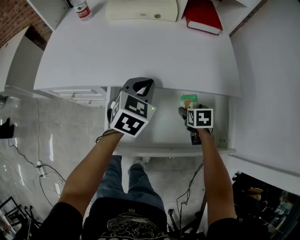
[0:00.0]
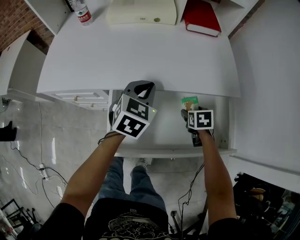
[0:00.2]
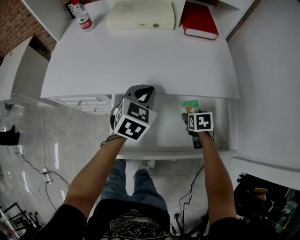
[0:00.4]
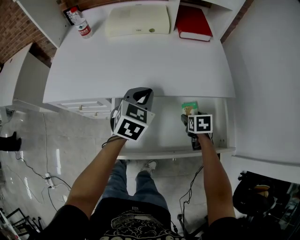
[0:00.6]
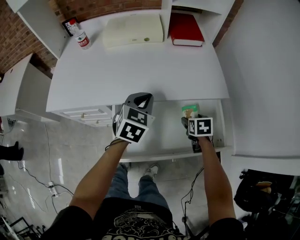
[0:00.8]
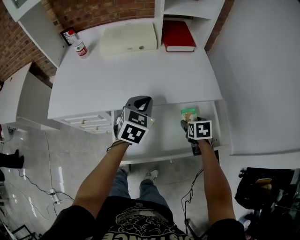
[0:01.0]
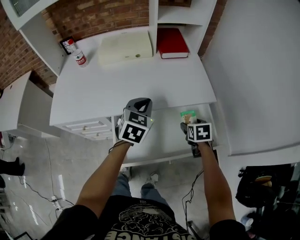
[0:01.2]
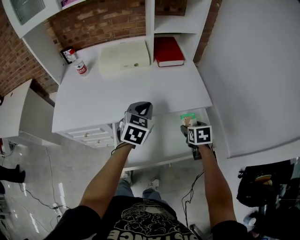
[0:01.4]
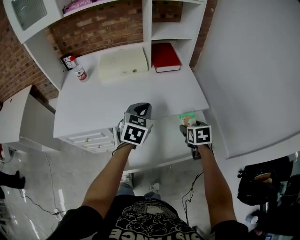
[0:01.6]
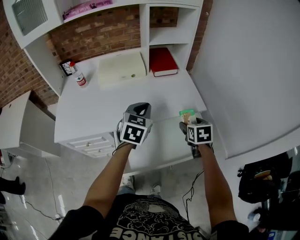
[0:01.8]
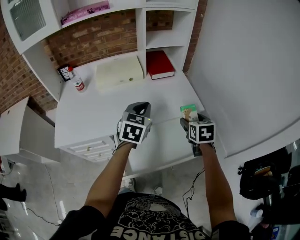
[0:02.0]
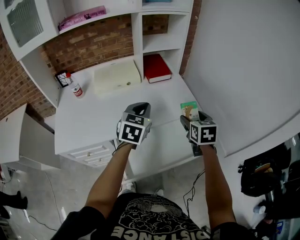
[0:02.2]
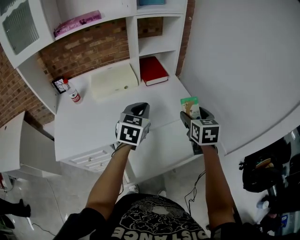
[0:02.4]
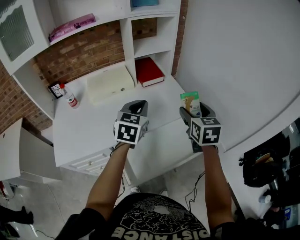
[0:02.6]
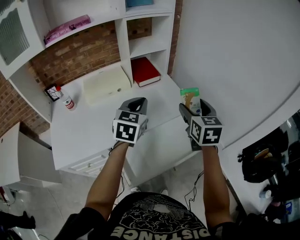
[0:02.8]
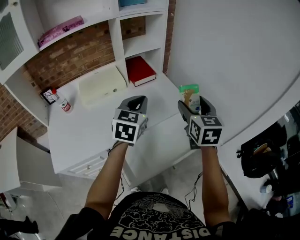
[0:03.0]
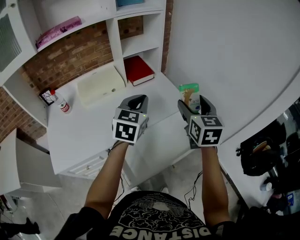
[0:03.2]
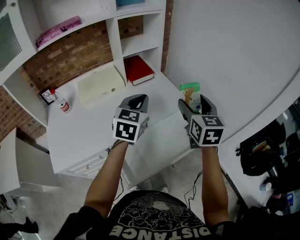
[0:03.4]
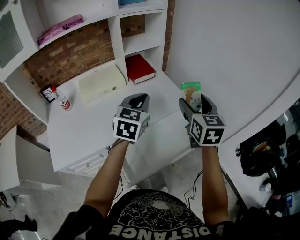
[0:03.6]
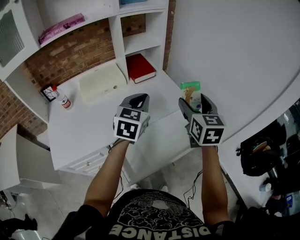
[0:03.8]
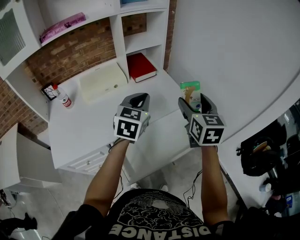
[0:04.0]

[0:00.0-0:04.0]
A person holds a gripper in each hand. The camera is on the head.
0:00.0 to 0:01.4: Both grippers travel together upward, roughly 15 cm.
0:01.4 to 0:02.6: The right gripper heads upward, covering roughly 25 cm, and tips its fingers upward by approximately 30 degrees; the left gripper travels upward by some 10 cm.
0:02.6 to 0:04.0: The right gripper shifts by about 5 cm.

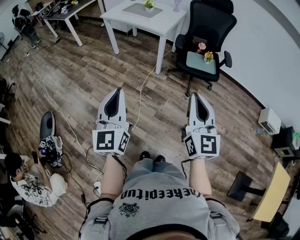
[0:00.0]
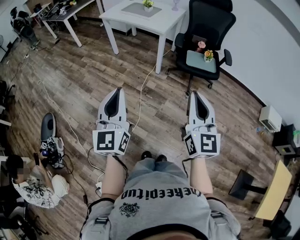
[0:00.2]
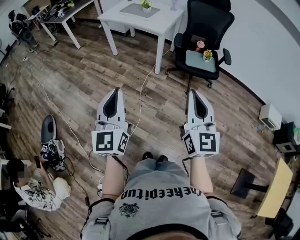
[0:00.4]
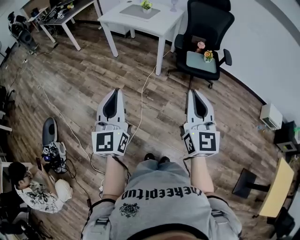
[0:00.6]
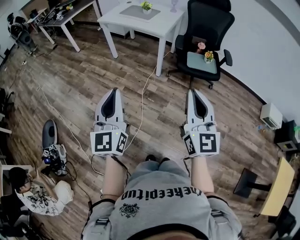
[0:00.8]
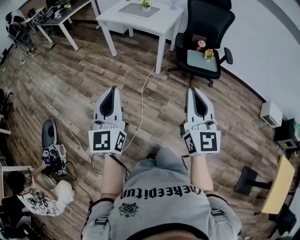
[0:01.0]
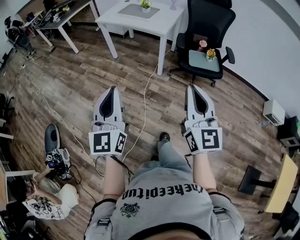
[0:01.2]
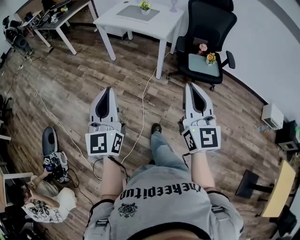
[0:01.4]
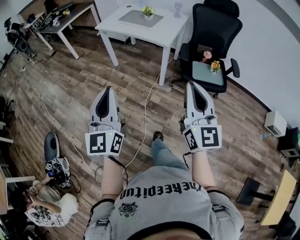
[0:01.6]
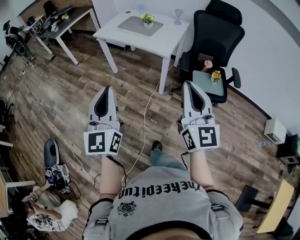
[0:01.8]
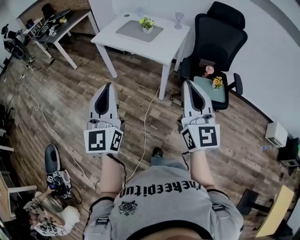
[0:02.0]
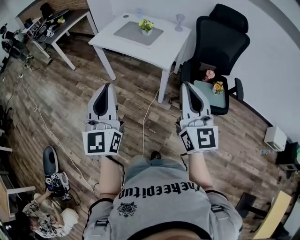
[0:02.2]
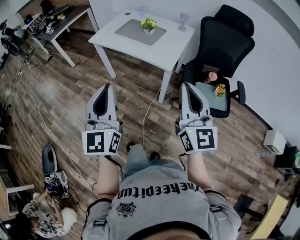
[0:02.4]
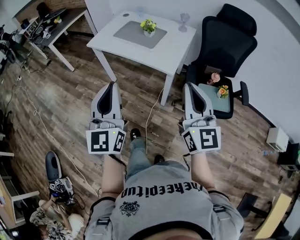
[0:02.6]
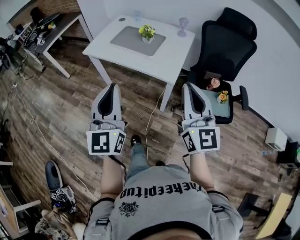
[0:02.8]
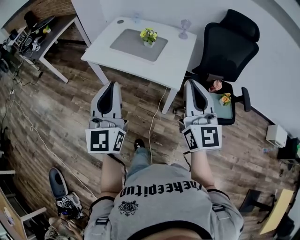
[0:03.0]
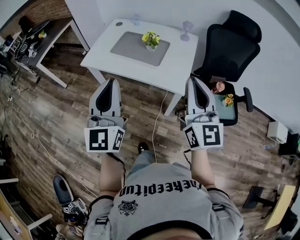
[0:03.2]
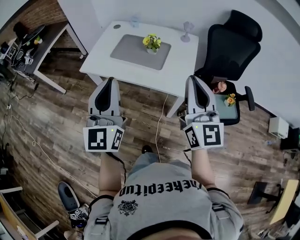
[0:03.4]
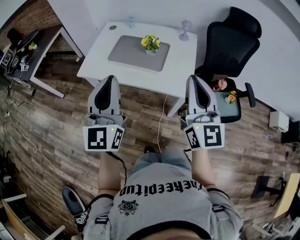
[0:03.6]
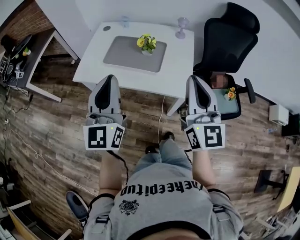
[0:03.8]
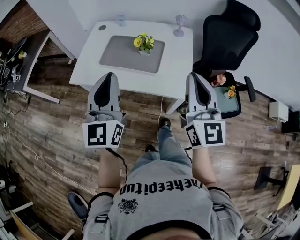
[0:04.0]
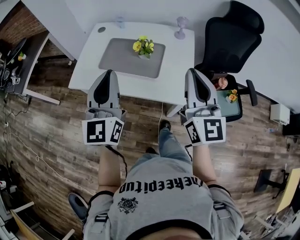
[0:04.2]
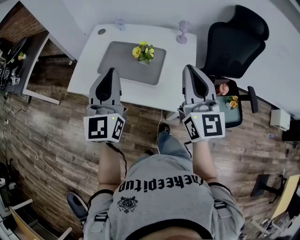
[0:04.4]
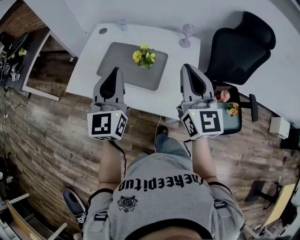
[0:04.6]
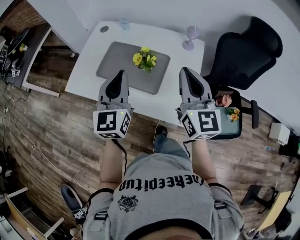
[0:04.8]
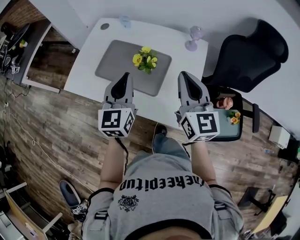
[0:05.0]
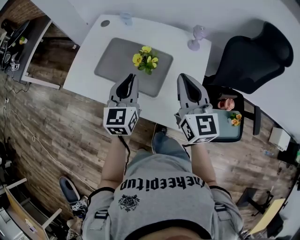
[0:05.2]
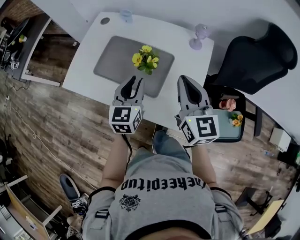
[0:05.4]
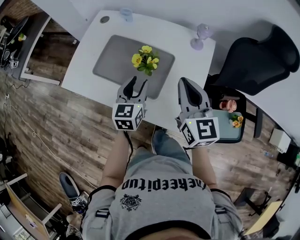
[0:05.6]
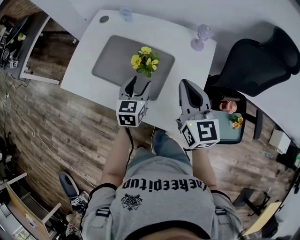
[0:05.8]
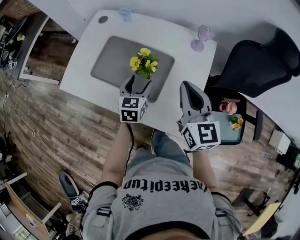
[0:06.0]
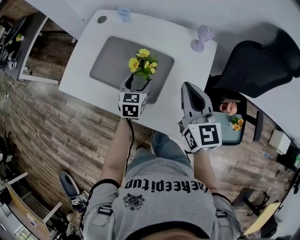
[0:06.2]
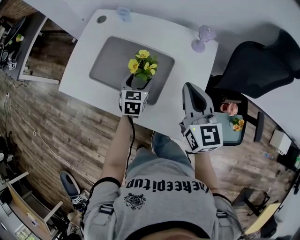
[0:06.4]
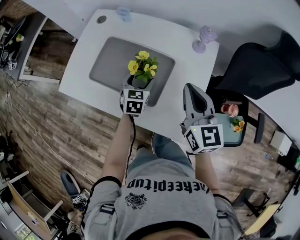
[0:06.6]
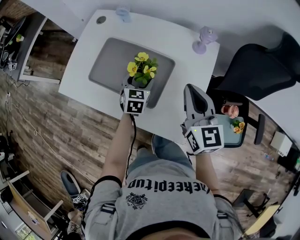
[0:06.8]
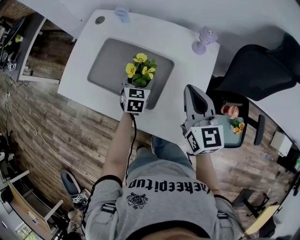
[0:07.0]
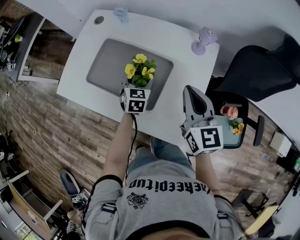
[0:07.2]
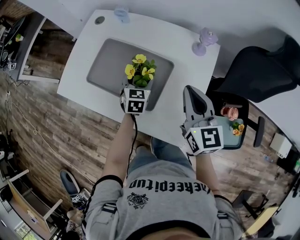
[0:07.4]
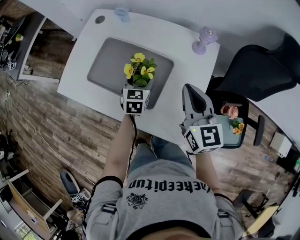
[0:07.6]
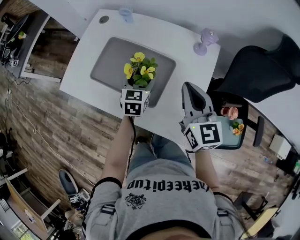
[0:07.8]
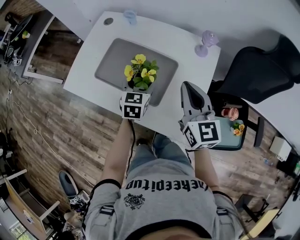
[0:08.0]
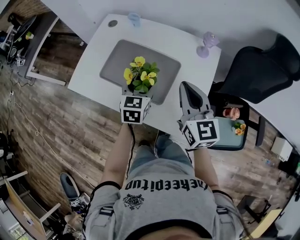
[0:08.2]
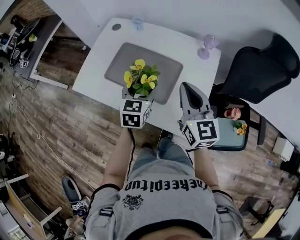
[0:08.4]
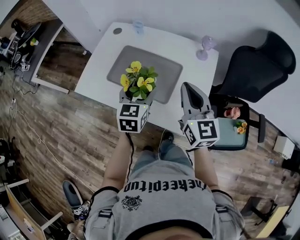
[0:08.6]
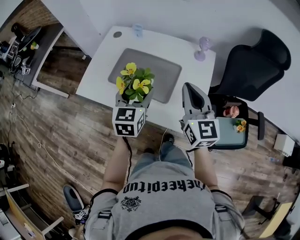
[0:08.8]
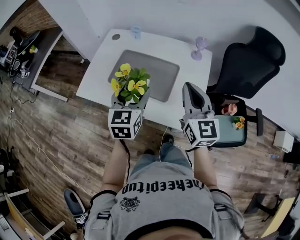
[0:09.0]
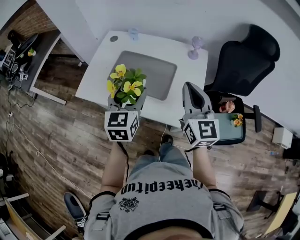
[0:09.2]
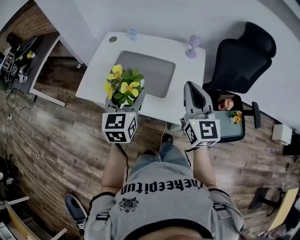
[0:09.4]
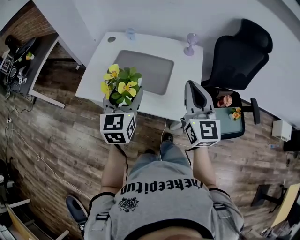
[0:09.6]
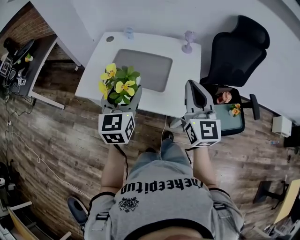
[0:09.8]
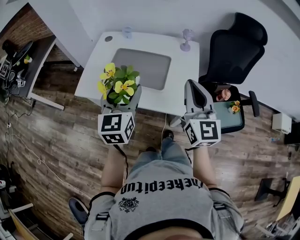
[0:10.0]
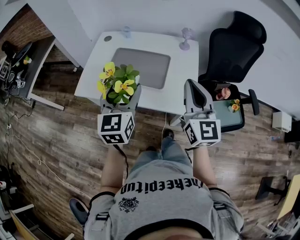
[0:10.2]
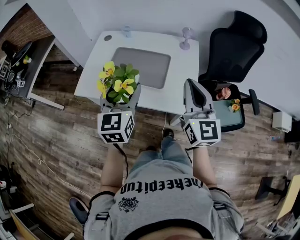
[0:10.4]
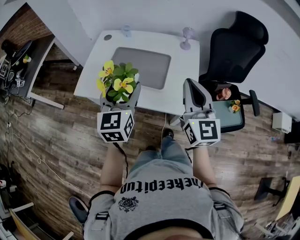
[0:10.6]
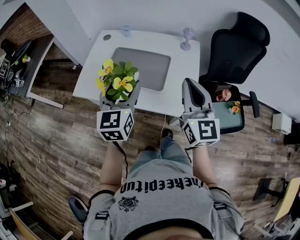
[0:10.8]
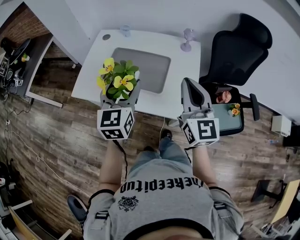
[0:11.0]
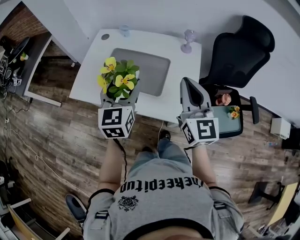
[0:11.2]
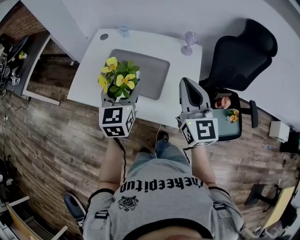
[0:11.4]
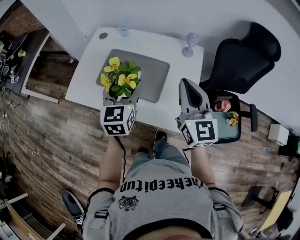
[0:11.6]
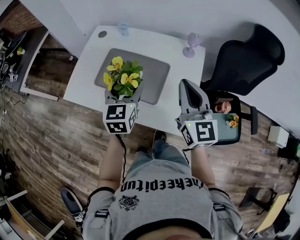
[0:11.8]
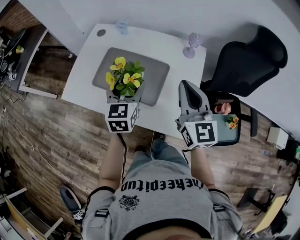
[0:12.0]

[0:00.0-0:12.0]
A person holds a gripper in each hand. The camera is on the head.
0:00.0 to 0:01.6: Both grippers move forward, some 20 cm.
0:01.6 to 0:03.0: Both grippers are carried forward, roughly 40 cm.
0:03.0 to 0:04.4: Both grippers move forward, about 30 cm.
0:04.4 to 0:06.0: The right gripper is displaced forward and downward by roughly 20 cm, and turns by roughly 20 degrees; the left gripper heads downward and forward, covering approximately 35 cm, tips its fingers downward by roughly 40 degrees, and opens up.
0:06.0 to 0:07.6: The left gripper moves forward, approximately 5 cm.
0:07.6 to 0:09.0: The left gripper moves upward, backward and to the left, some 30 cm, while the right gripper moves backward, upward and to the left, some 15 cm.
0:09.0 to 0:10.4: The left gripper is displaced backward and upward by some 10 cm. Meanwhile the right gripper goes roughly 10 cm backward.
0:10.4 to 0:12.0: The right gripper shifts about 15 cm forward, while the left gripper heads forward and downward, covering about 20 cm.

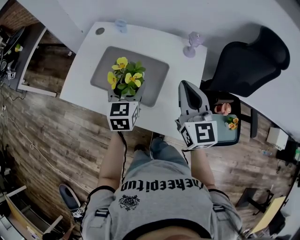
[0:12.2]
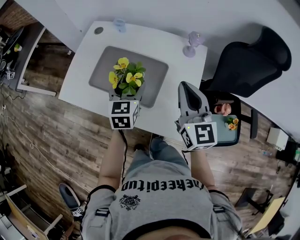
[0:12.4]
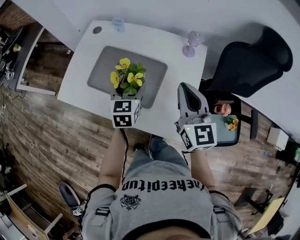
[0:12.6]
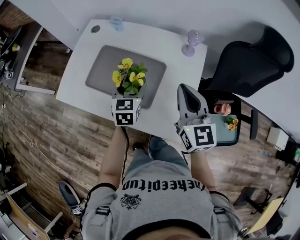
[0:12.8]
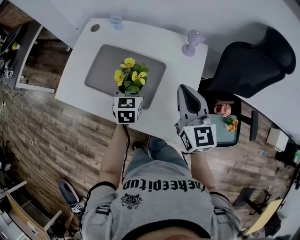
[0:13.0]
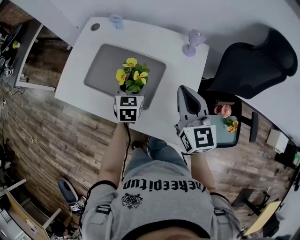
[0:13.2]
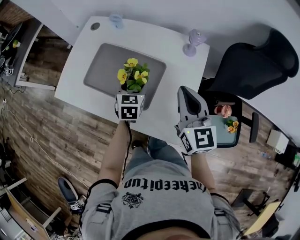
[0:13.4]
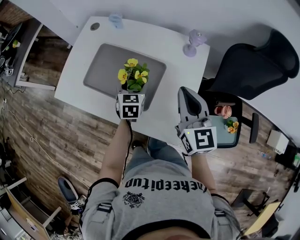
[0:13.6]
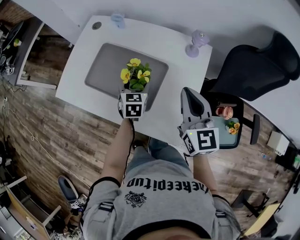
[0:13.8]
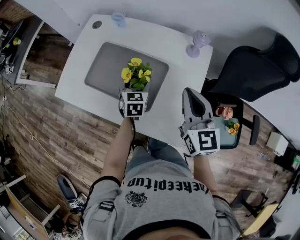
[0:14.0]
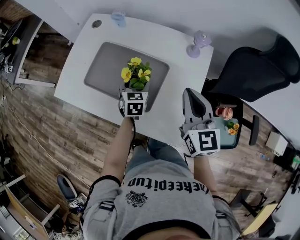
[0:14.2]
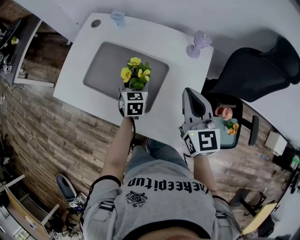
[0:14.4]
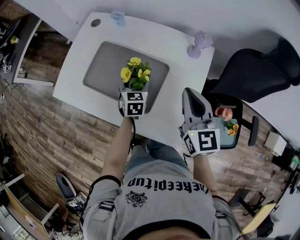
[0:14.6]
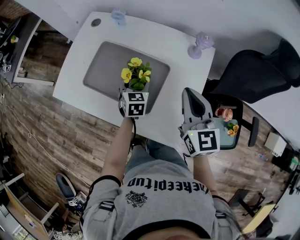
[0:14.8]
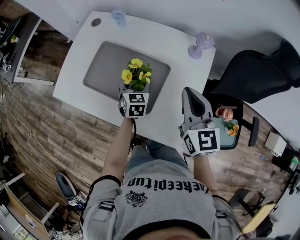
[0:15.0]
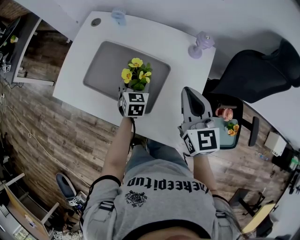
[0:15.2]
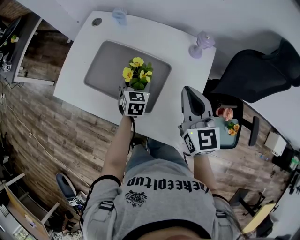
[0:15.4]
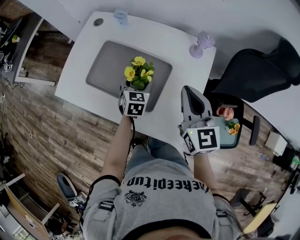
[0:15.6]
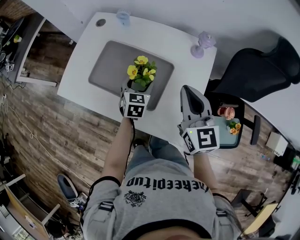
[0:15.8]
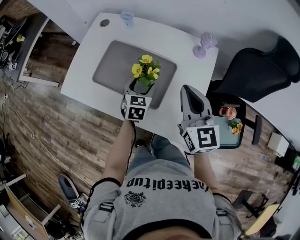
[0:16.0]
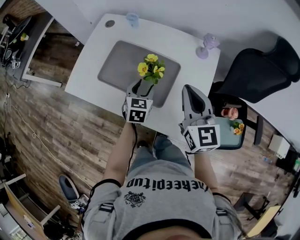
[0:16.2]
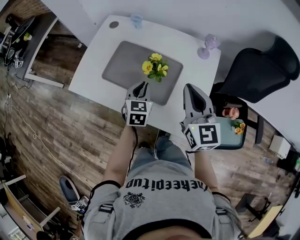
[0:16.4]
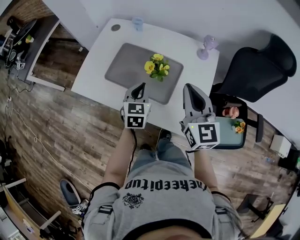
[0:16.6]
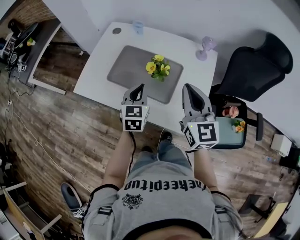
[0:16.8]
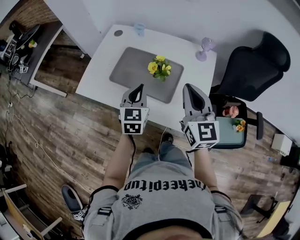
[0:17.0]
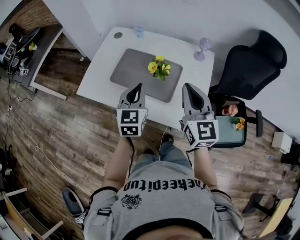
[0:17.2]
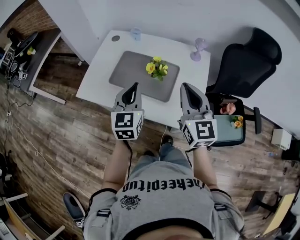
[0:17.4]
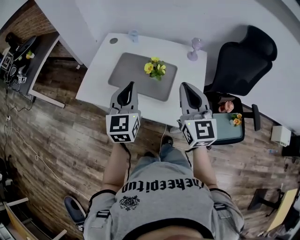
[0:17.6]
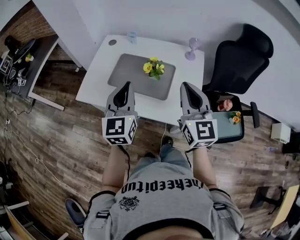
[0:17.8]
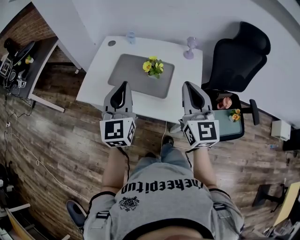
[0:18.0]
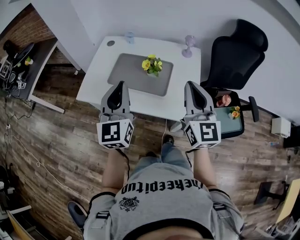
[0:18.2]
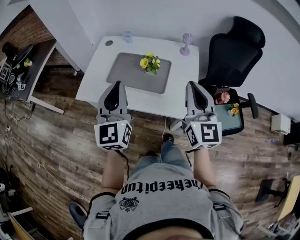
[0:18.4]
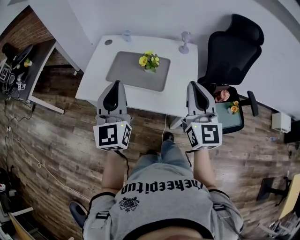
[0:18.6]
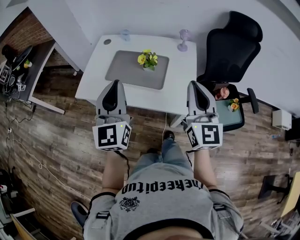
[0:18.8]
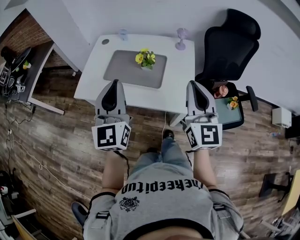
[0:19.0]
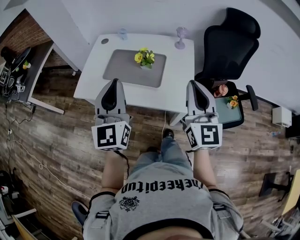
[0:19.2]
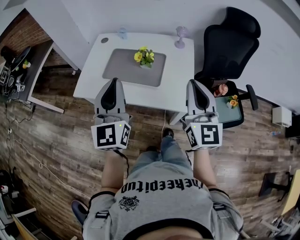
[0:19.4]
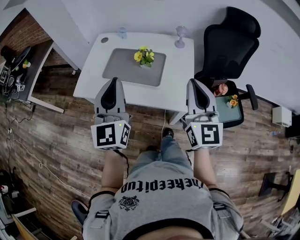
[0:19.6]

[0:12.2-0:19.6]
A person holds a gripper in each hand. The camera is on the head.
0:12.2 to 0:13.6: The left gripper moves downward, roughly 15 cm. The right gripper moves some 5 cm.
0:13.6 to 0:15.2: The grippers make only small movements.
0:15.2 to 0:16.6: The left gripper shifts approximately 15 cm upward, backward and to the left, and closes up. Meanwhile the right gripper goes roughly 10 cm to the left, backward and upward.
0:16.6 to 0:18.2: The left gripper goes some 25 cm upward and backward, and tips its fingers upward by about 30 degrees; the right gripper shifts roughly 15 cm backward and upward.
0:18.2 to 0:19.6: The grippers both shift backward by about 5 cm.
